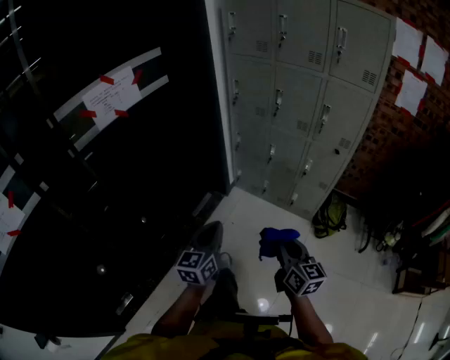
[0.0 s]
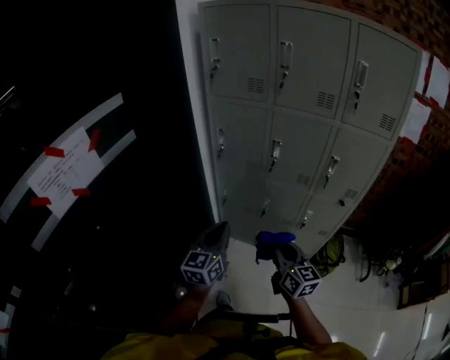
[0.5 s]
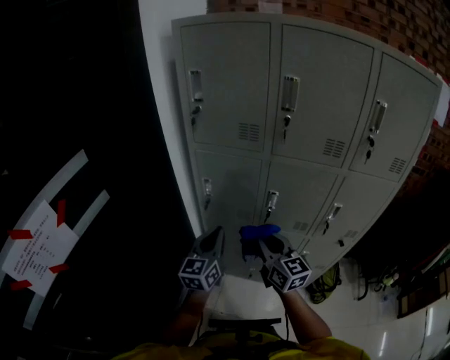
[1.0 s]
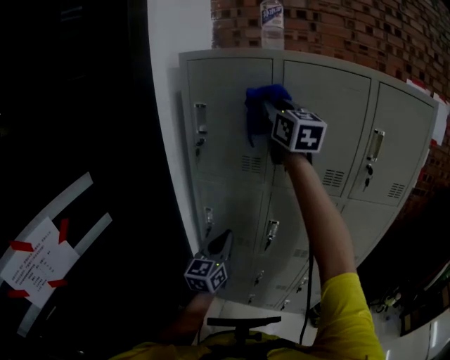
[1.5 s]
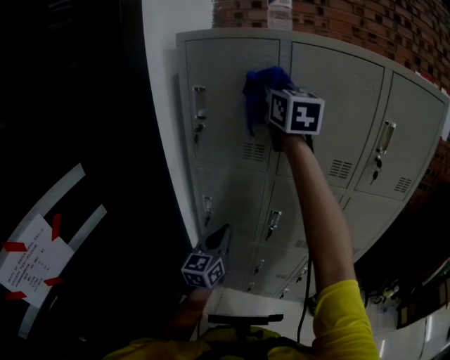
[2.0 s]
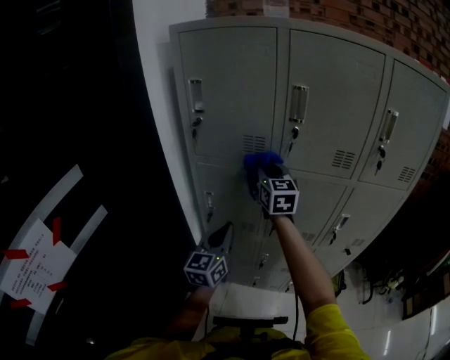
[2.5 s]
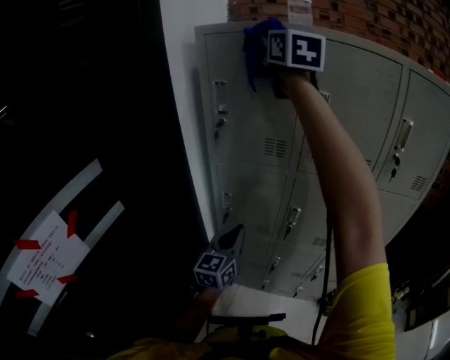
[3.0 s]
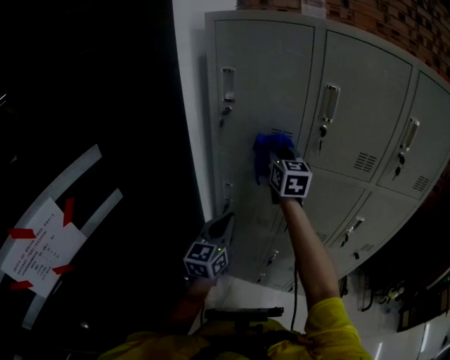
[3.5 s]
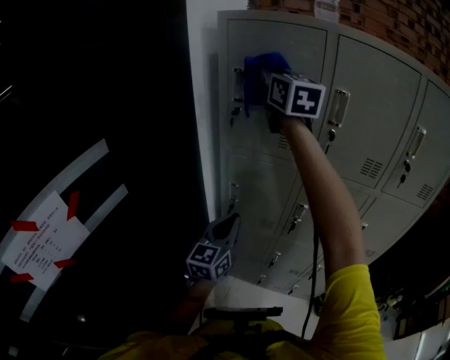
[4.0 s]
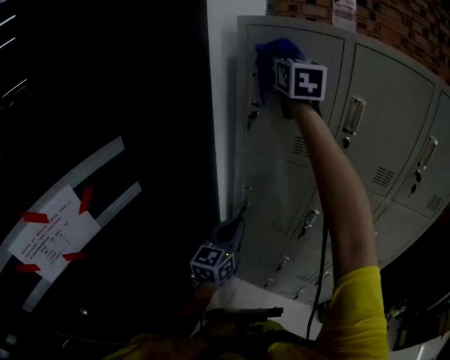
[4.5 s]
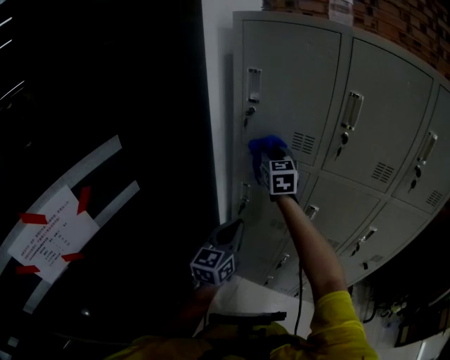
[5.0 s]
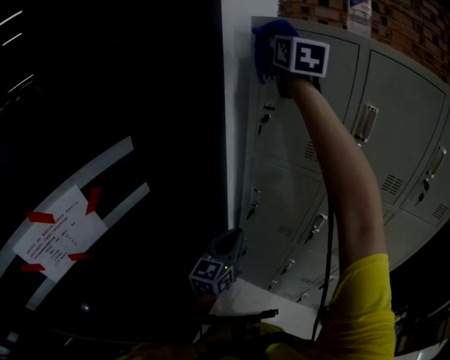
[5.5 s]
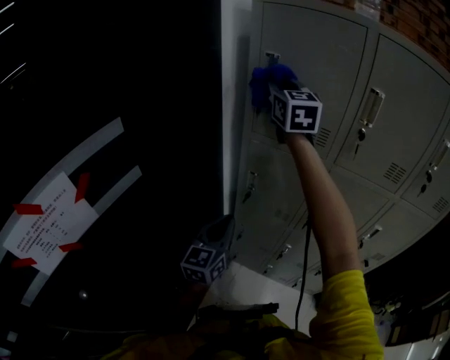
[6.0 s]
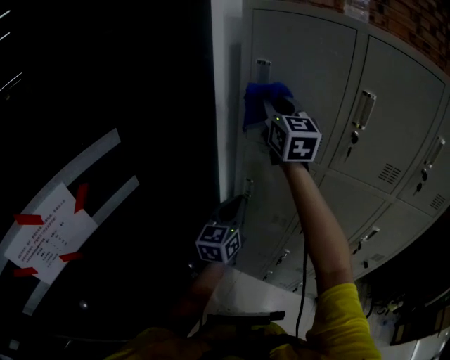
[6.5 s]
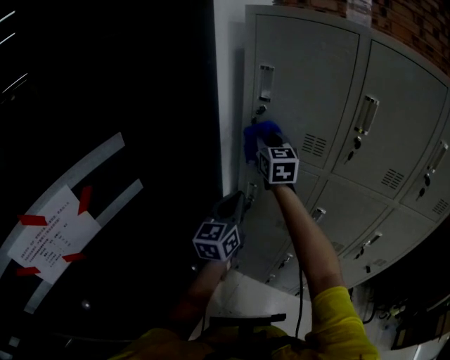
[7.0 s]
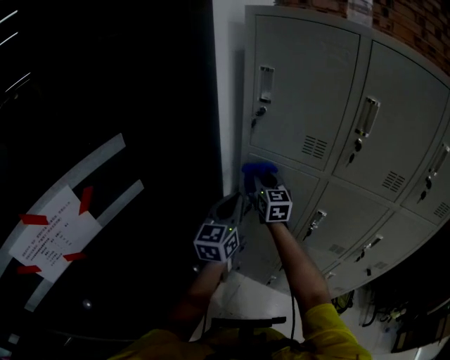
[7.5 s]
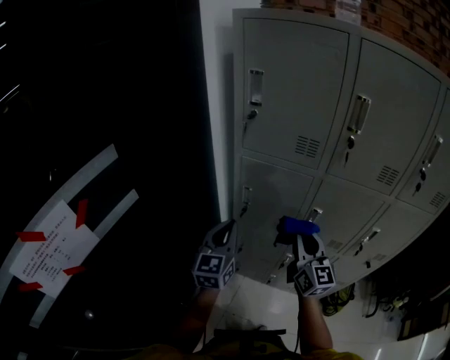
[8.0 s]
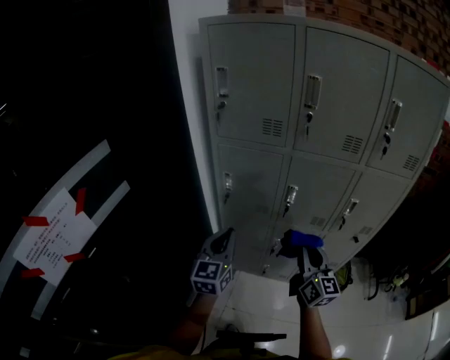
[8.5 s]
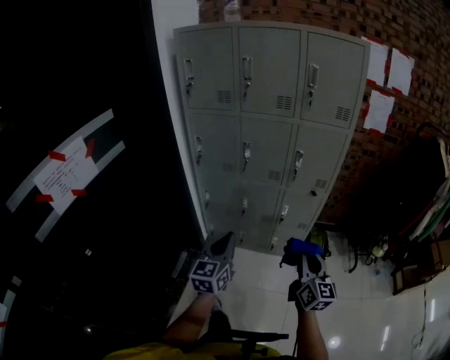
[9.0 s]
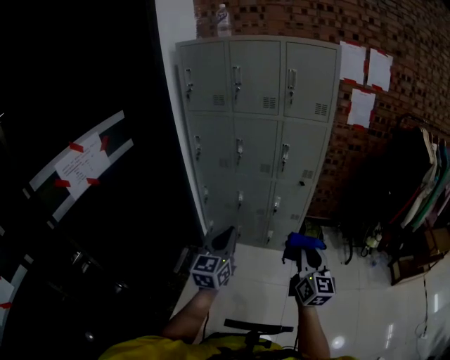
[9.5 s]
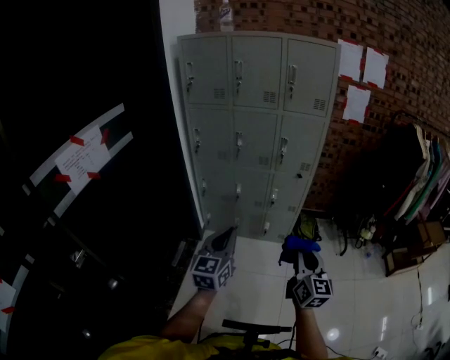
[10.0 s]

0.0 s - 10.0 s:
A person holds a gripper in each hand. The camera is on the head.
0.0 s - 2.0 s: The pair of grippers is taken forward, some 70 cm. The right gripper heads upward, covering about 50 cm, and turns by about 40 degrees. Meanwhile the left gripper turns by some 20 degrees.
2.0 s - 4.0 s: The right gripper goes up and down, approximately 40 cm each way, reversing 3 times, while the left gripper goes some 5 cm to the left.
4.0 s - 6.0 s: The right gripper goes up and down, roughly 35 cm each way, reversing 3 times. The left gripper travels to the left by roughly 5 cm.
6.0 s - 8.0 s: The right gripper goes about 40 cm downward, backward and to the right.
8.0 s - 10.0 s: The two grippers travel together, backward and to the right, about 70 cm. The right gripper changes its angle by roughly 20 degrees.

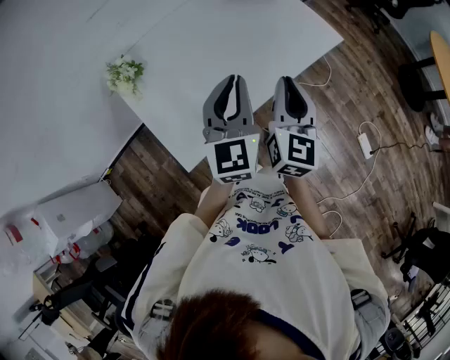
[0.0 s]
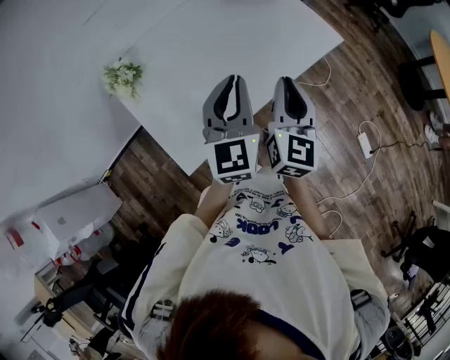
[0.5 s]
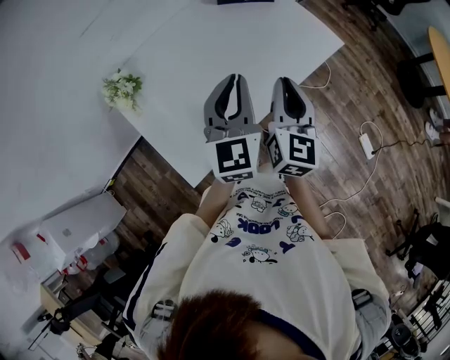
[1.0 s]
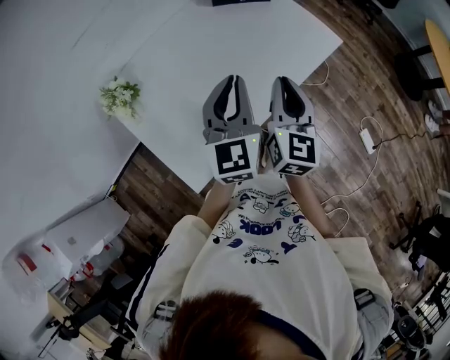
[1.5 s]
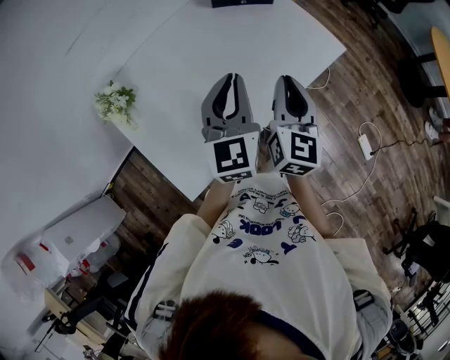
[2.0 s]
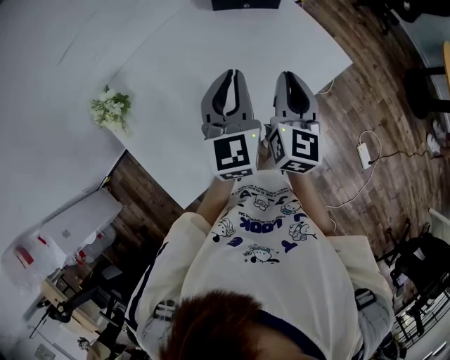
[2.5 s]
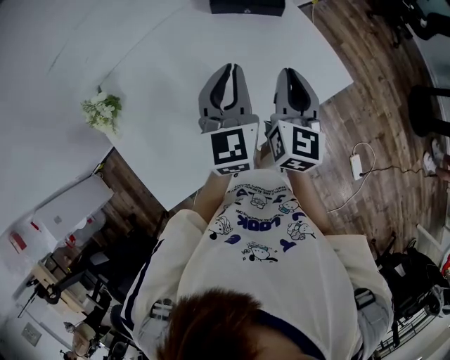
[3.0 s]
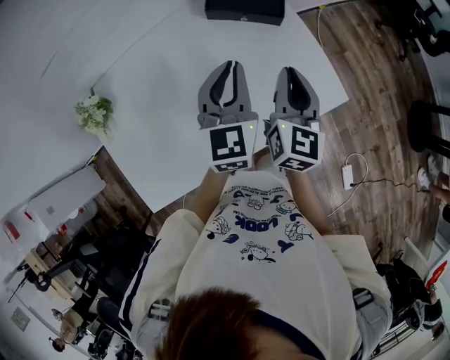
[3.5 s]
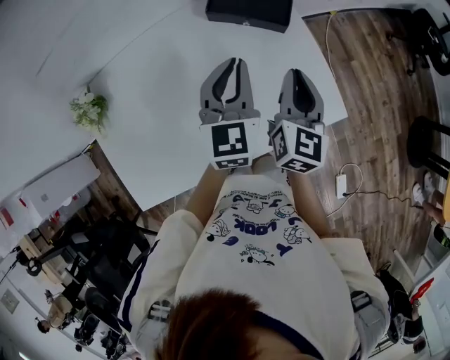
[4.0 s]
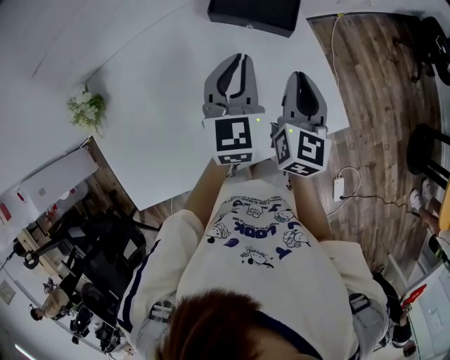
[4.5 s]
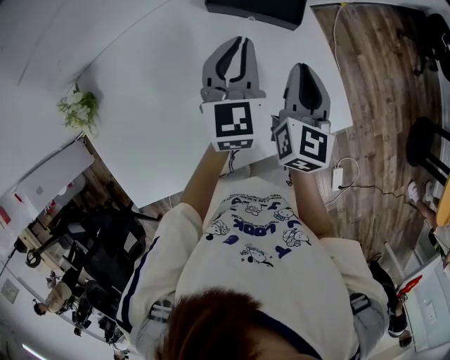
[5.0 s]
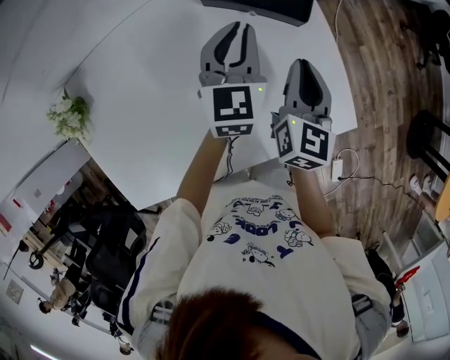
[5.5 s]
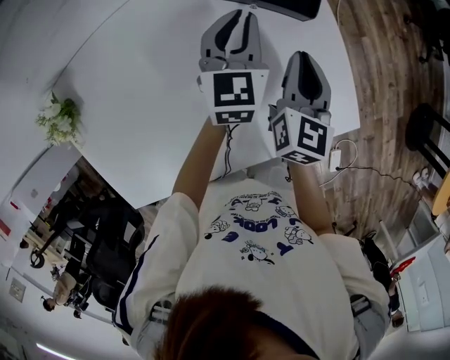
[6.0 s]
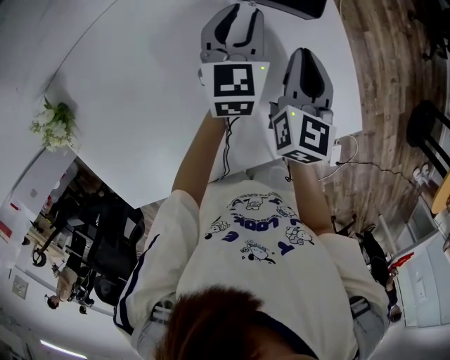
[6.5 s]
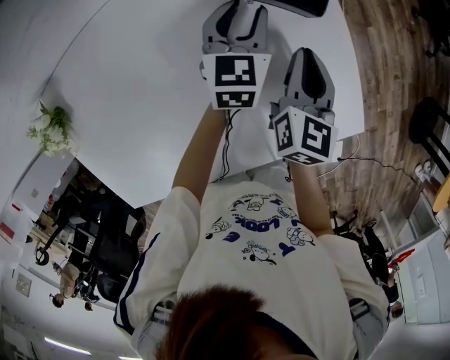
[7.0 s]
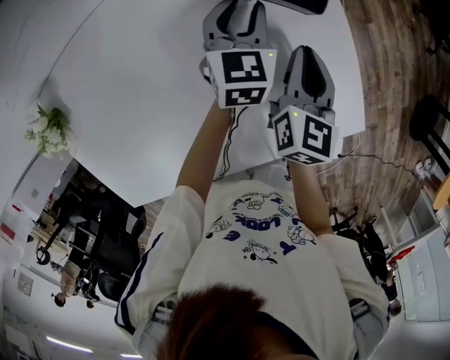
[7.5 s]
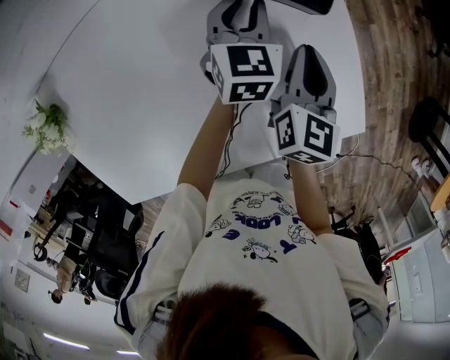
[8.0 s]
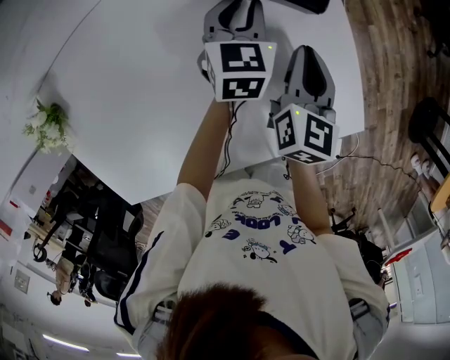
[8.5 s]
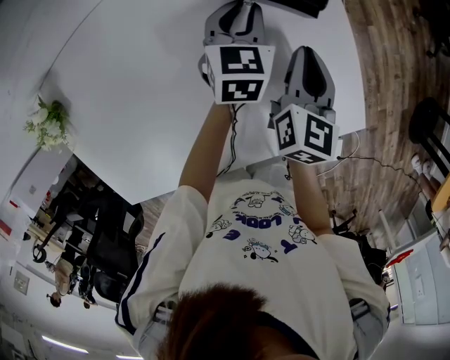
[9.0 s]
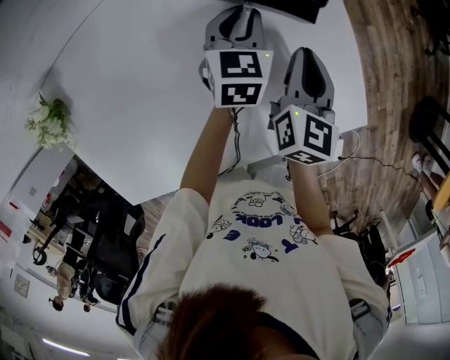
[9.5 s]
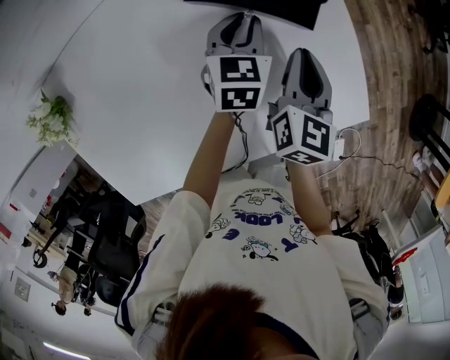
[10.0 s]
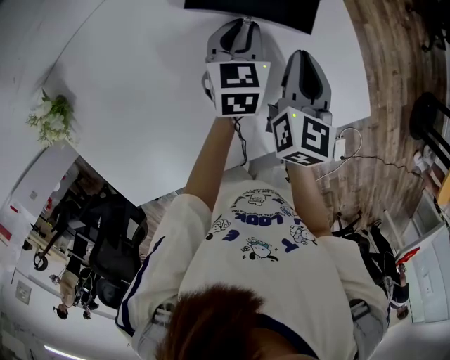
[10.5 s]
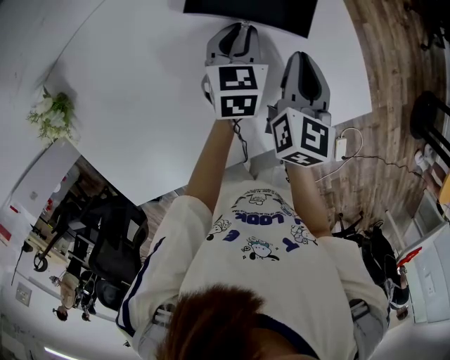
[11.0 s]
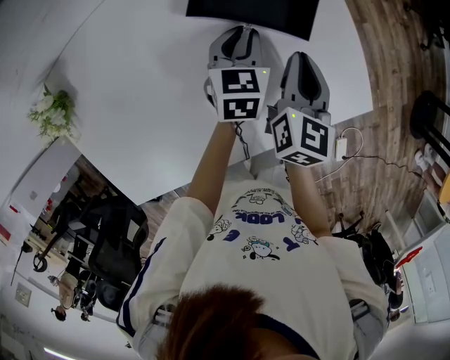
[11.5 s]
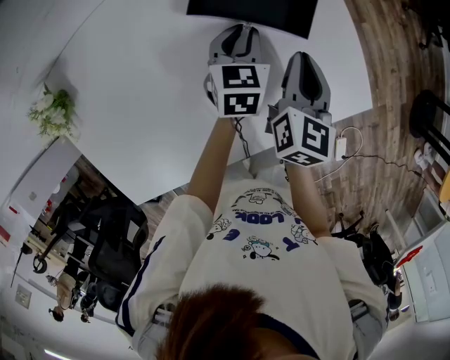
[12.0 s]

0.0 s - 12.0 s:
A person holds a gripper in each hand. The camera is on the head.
0.0 s - 2.0 s: The grippers both shift forward by about 10 cm.
2.0 s - 4.0 s: The grippers both shift forward and to the right by approximately 25 cm.
4.0 s - 6.0 s: The right gripper goes approximately 10 cm downward and forward. The left gripper shifts approximately 20 cm forward and downward.
6.0 s - 8.0 s: The right gripper shifts by approximately 5 cm. Meanwhile the left gripper travels downward by approximately 10 cm.
8.0 s - 10.0 s: The right gripper shifts by approximately 5 cm. The left gripper shifts roughly 5 cm backward.
10.0 s - 12.0 s: The left gripper moves backward, roughly 5 cm.

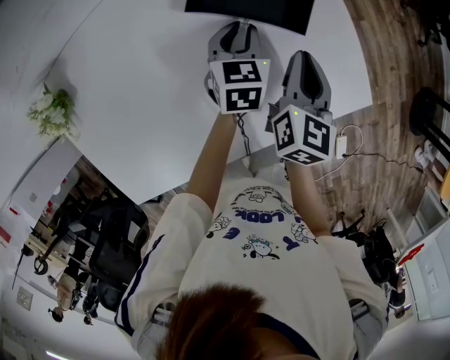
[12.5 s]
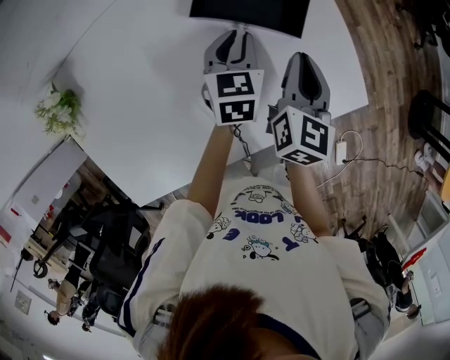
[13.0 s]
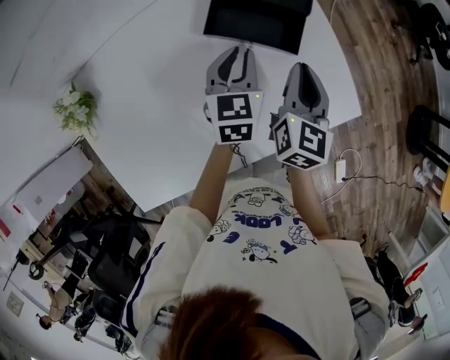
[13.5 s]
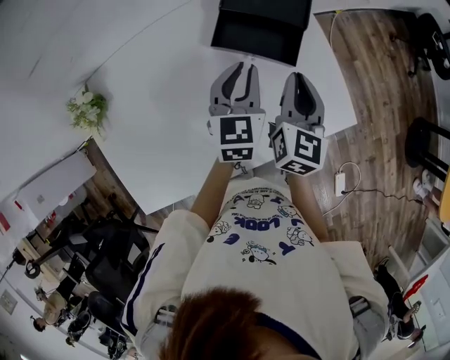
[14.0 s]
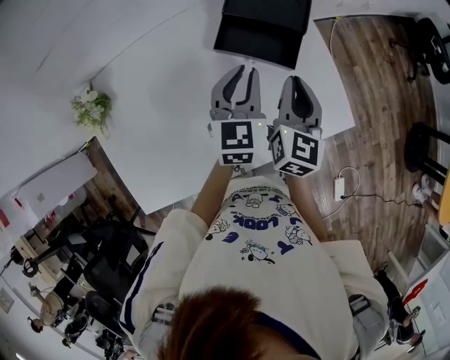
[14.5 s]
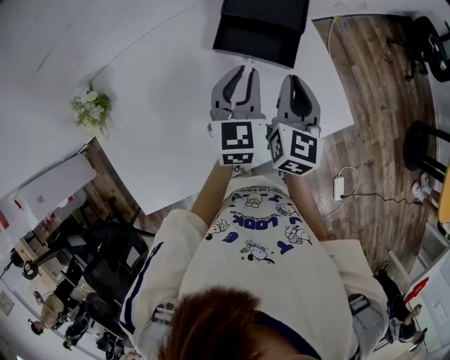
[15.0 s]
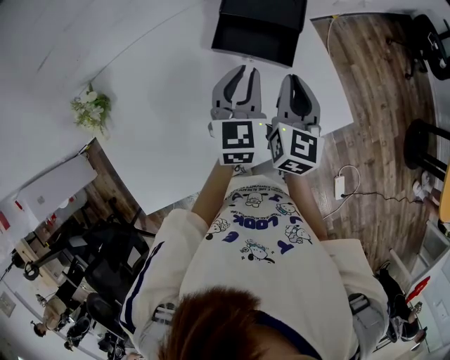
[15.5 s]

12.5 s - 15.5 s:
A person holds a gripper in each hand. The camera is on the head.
12.5 s - 14.0 s: The right gripper heads upward, covering roughly 10 cm; the left gripper travels upward by about 15 cm.
14.0 s - 15.5 s: There are only small adjustments of the grippers.

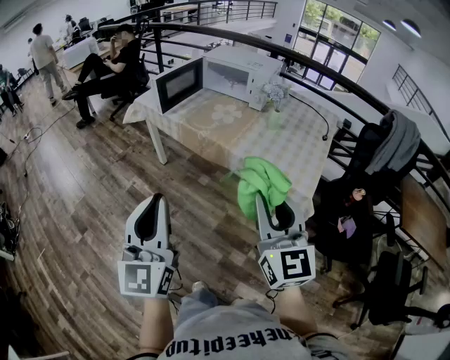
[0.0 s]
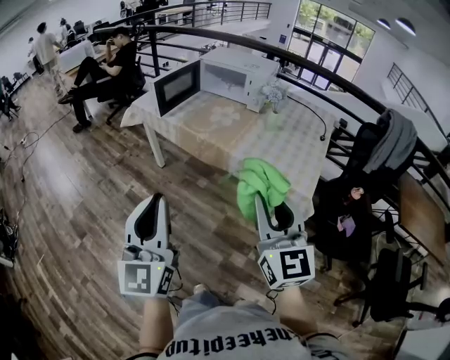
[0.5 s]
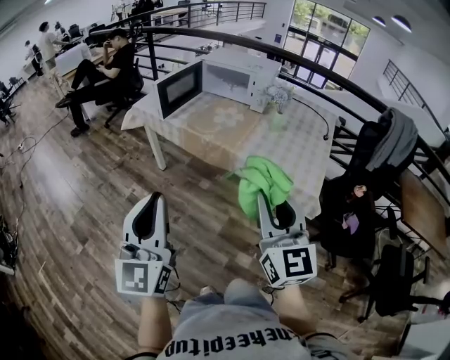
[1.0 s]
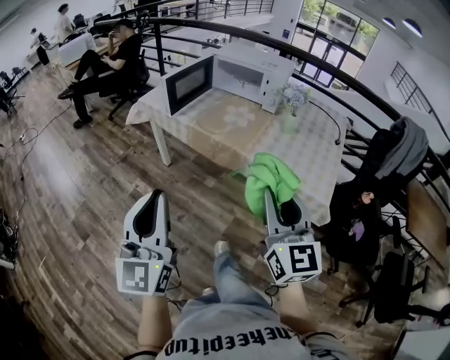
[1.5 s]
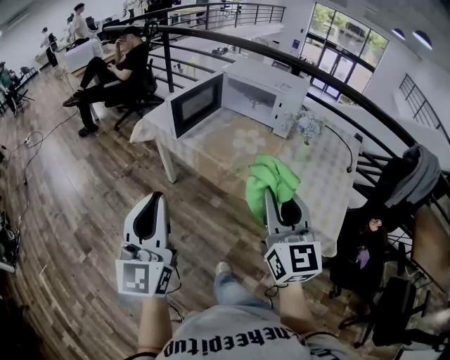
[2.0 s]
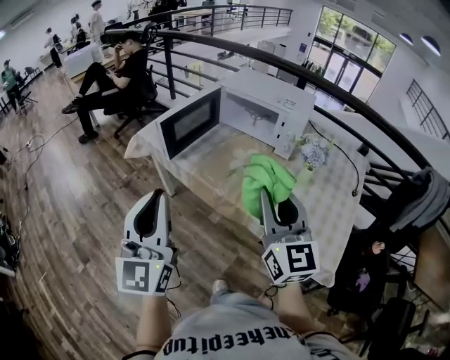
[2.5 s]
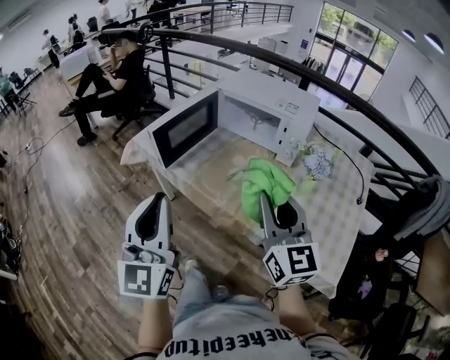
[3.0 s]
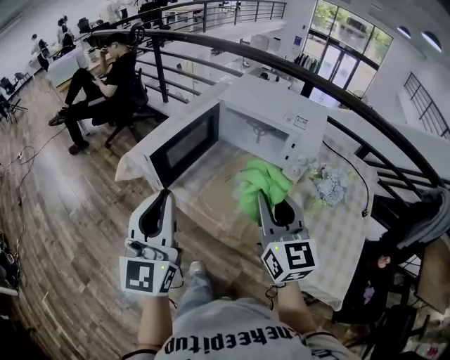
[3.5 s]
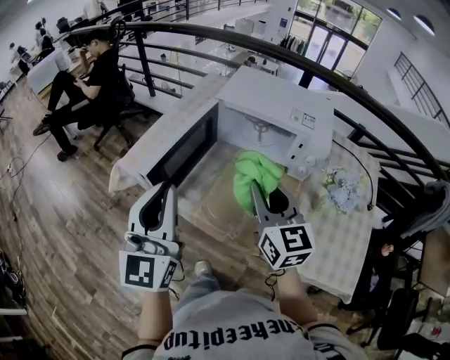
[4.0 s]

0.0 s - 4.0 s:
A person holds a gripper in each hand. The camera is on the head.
0.0 s - 2.0 s: The left gripper goes approximately 20 cm forward and to the left. The right gripper travels forward by about 20 cm.
2.0 s - 4.0 s: The grippers both shift forward by about 40 cm.
